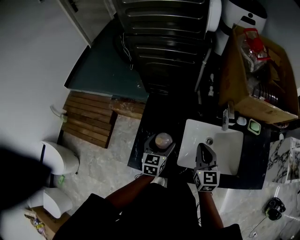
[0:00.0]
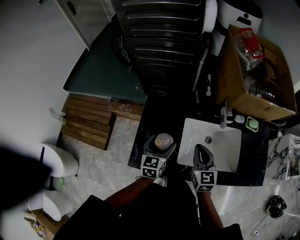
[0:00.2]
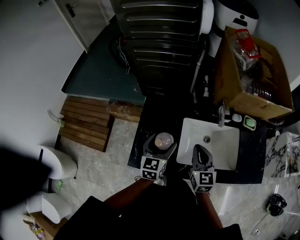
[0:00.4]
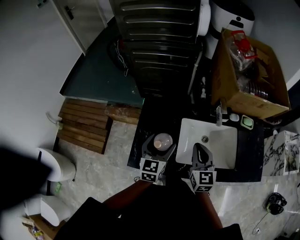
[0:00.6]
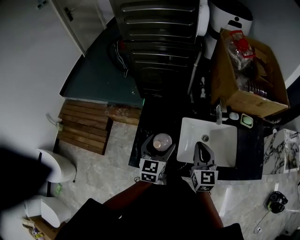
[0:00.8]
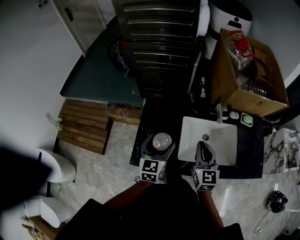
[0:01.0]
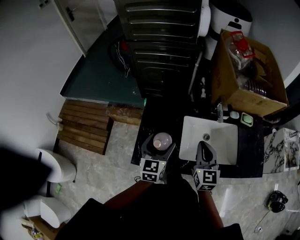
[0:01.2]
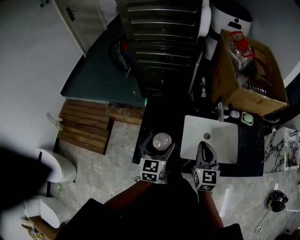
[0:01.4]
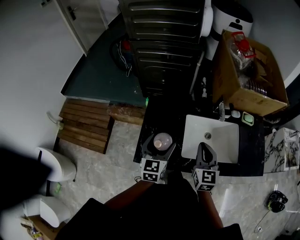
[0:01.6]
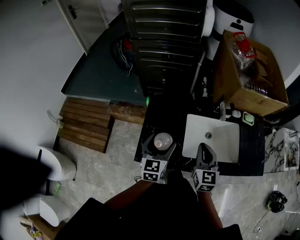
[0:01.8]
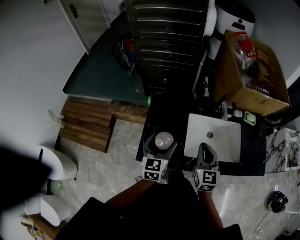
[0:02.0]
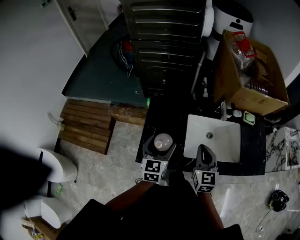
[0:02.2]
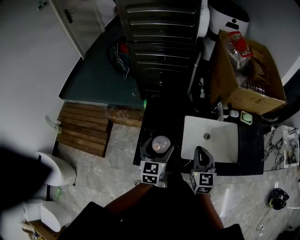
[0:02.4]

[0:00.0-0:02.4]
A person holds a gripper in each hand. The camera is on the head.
0:00.0 to 0:01.2: The left gripper goes some 10 cm upward and backward. The right gripper is displaced backward and upward by about 10 cm.
0:01.2 to 0:02.4: The grippers make only small movements.

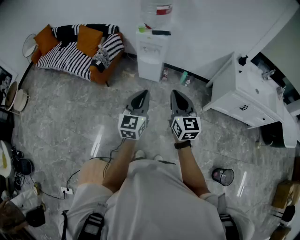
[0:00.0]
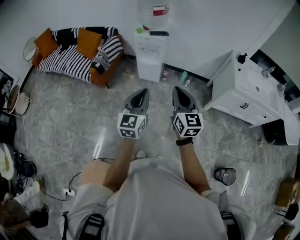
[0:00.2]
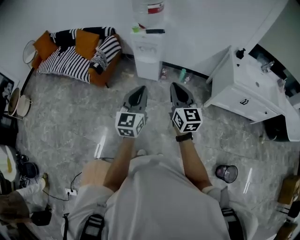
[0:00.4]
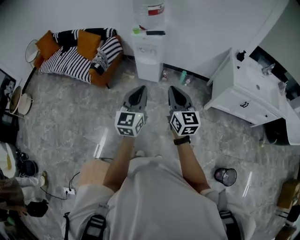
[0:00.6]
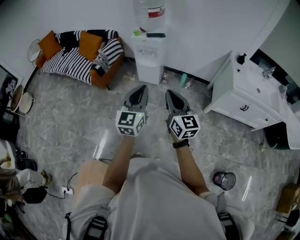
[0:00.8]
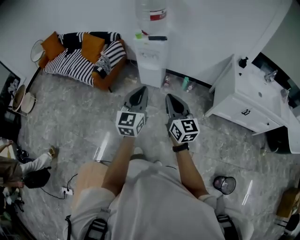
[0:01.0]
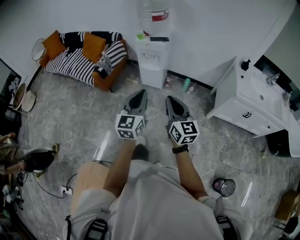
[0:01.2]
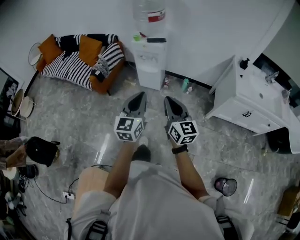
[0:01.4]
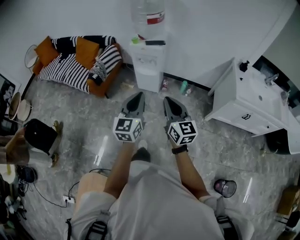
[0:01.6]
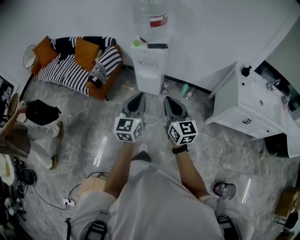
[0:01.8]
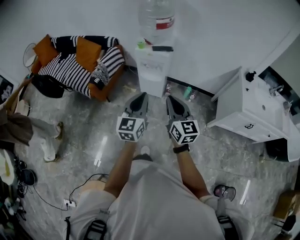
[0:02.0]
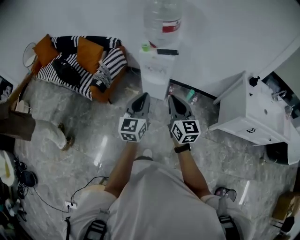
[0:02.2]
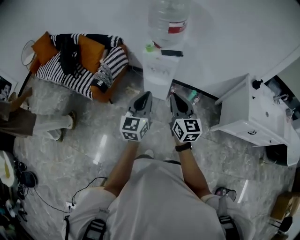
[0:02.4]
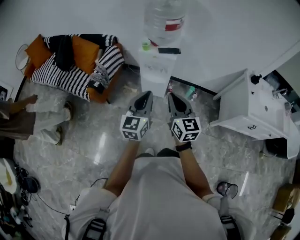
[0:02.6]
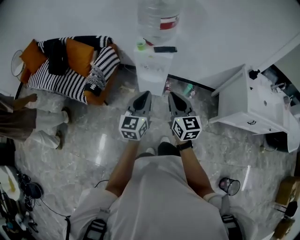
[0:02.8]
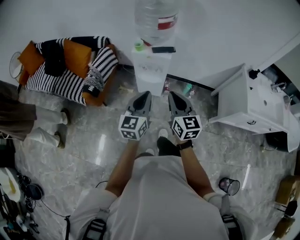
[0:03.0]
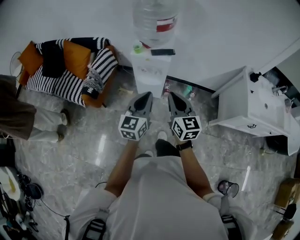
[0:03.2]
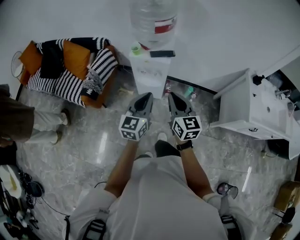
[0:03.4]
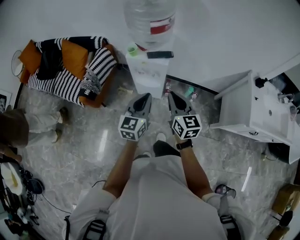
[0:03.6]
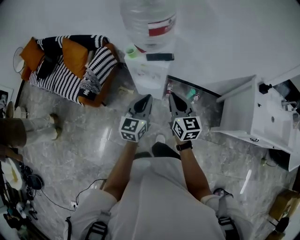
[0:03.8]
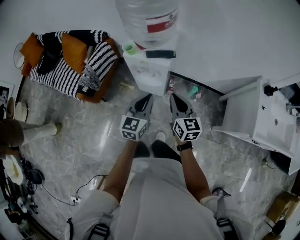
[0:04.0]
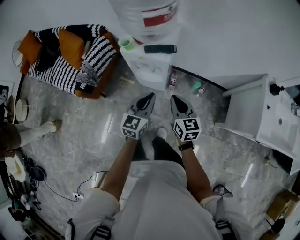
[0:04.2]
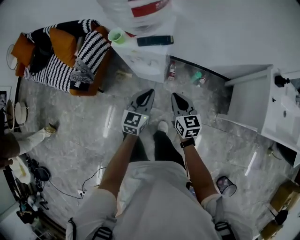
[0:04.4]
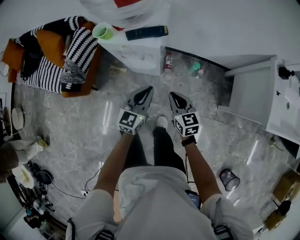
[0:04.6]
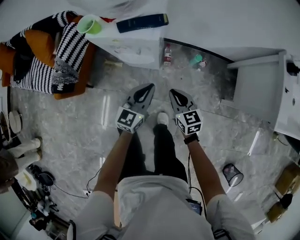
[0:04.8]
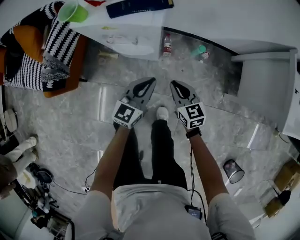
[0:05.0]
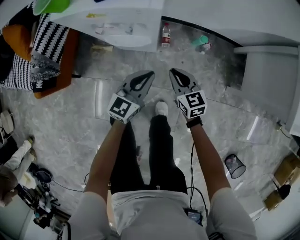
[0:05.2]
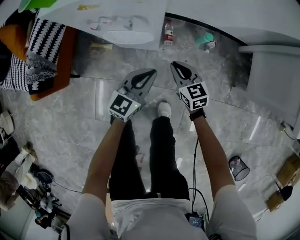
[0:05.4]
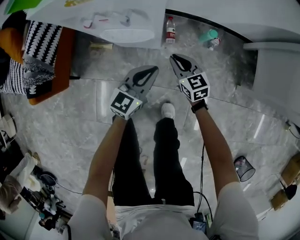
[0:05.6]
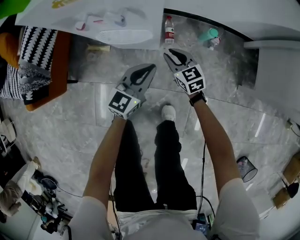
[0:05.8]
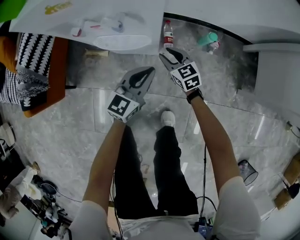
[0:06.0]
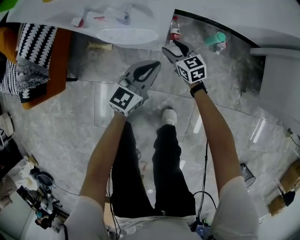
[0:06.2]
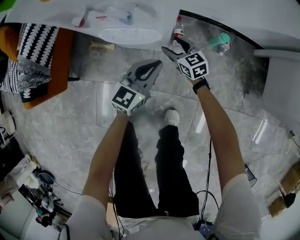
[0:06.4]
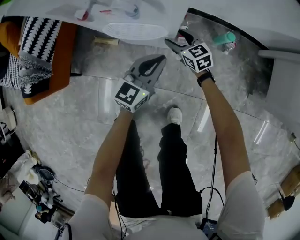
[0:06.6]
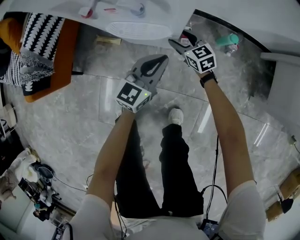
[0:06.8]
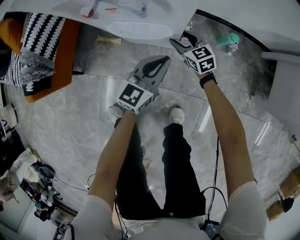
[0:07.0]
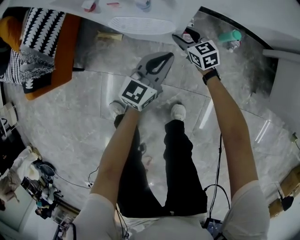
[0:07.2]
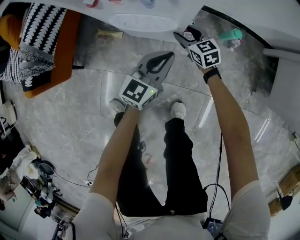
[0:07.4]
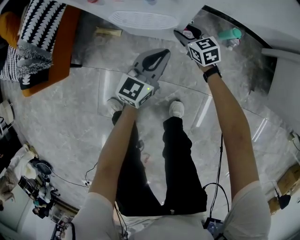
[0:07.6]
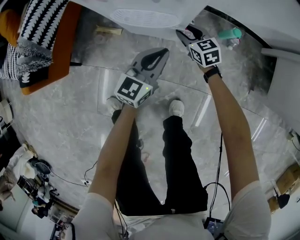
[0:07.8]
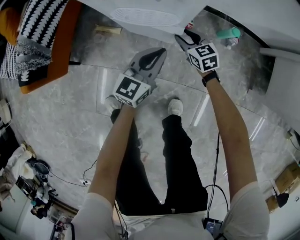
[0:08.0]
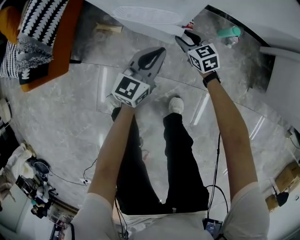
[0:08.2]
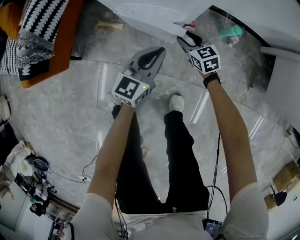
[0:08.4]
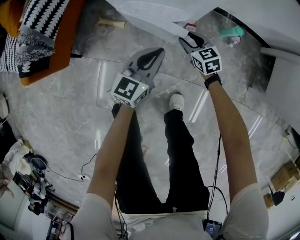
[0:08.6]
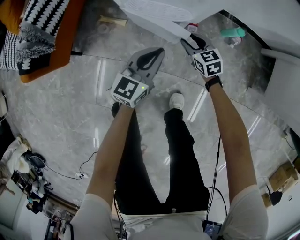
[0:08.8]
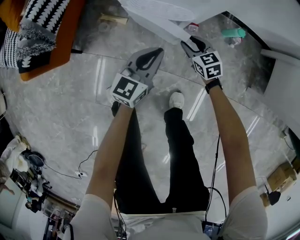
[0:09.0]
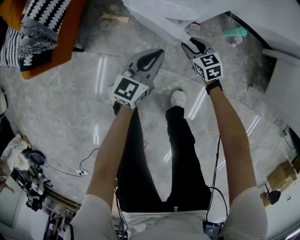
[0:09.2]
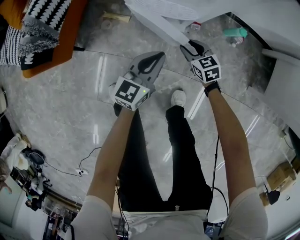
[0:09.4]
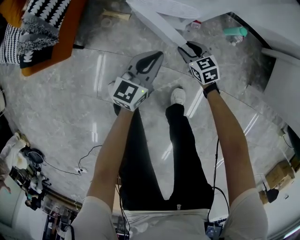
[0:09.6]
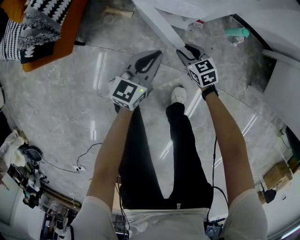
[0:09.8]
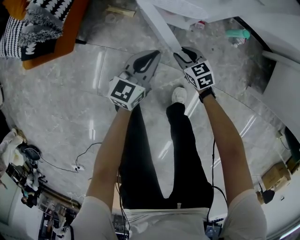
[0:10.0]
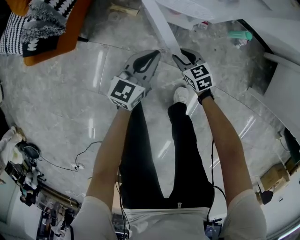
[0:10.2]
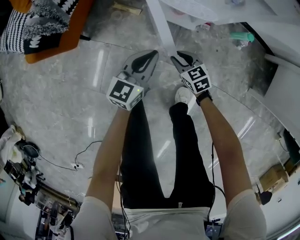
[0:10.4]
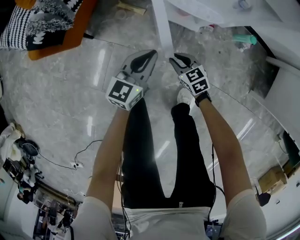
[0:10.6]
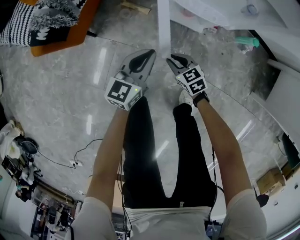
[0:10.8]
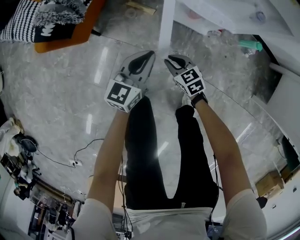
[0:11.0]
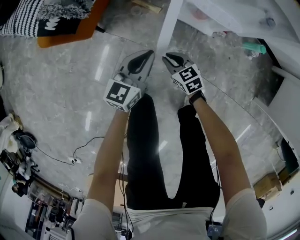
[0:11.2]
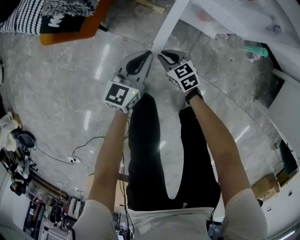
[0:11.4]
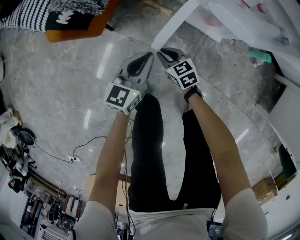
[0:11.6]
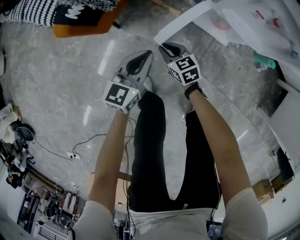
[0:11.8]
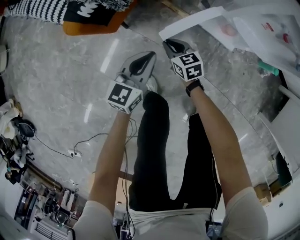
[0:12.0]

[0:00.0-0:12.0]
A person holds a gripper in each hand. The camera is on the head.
0:00.0 to 0:01.6: Both grippers move forward, some 10 cm.
0:01.6 to 0:03.0: Both grippers move forward, about 25 cm.
0:03.0 to 0:04.4: Both grippers travel together downward, forward and to the right, approximately 30 cm.
0:04.4 to 0:06.0: The grippers both shift downward by about 40 cm. The right gripper opens up.
0:06.0 to 0:07.6: The right gripper moves forward, some 5 cm.
0:07.6 to 0:09.0: The right gripper goes some 10 cm backward. Meanwhile the left gripper goes approximately 5 cm to the left.
0:09.0 to 0:10.4: The right gripper heads to the left and backward, covering about 15 cm. The left gripper travels to the left by about 10 cm.
0:10.4 to 0:12.0: The right gripper moves to the left and forward, approximately 30 cm. Meanwhile the left gripper goes about 25 cm to the left.

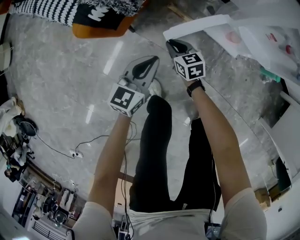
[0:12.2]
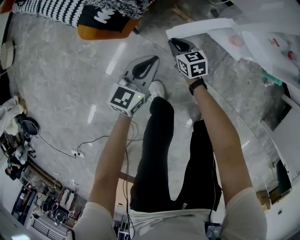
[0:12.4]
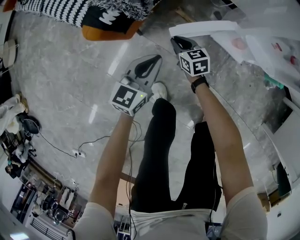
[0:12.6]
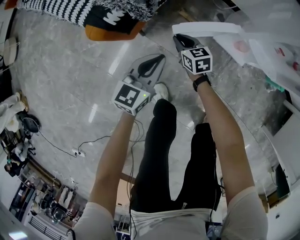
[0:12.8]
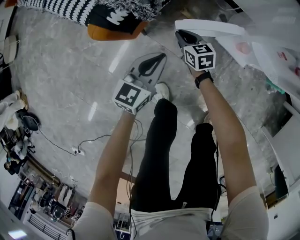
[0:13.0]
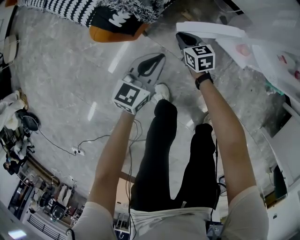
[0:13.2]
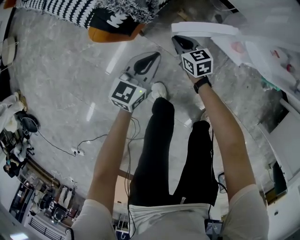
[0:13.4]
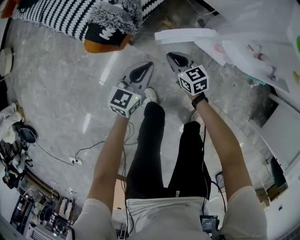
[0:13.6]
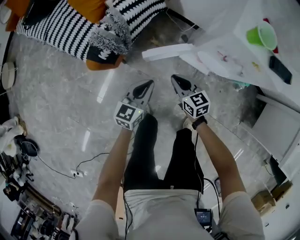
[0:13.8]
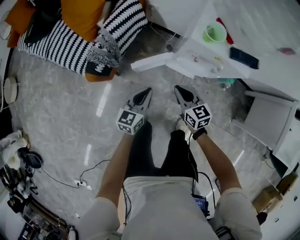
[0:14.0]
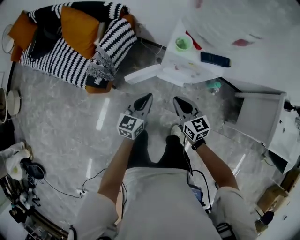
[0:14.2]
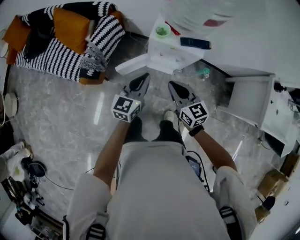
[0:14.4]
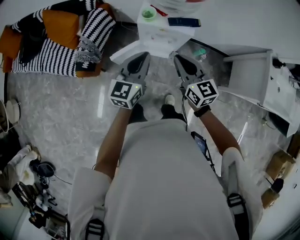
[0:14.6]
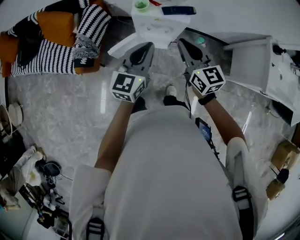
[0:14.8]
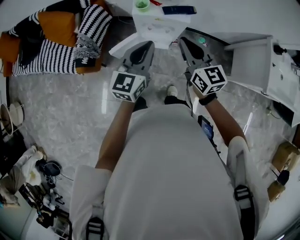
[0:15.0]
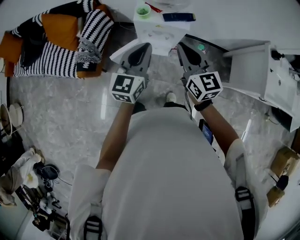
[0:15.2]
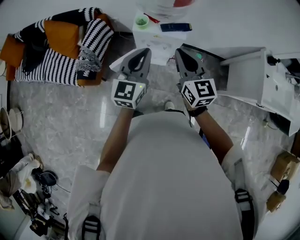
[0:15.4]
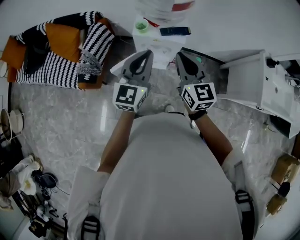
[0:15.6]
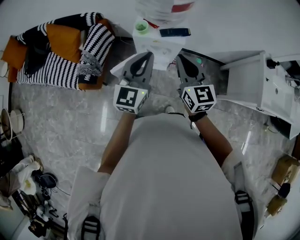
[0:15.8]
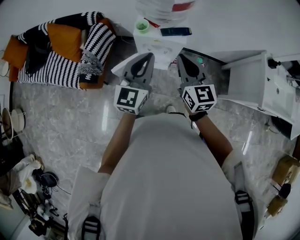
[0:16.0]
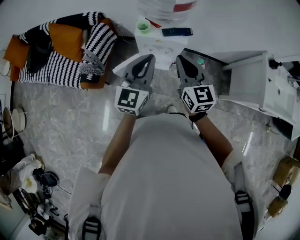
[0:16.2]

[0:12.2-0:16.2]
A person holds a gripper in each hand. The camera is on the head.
0:12.2 to 0:13.6: The right gripper heads upward, covering some 10 cm. Meanwhile the left gripper goes approximately 5 cm upward.
0:13.6 to 0:14.8: The two grippers go approximately 50 cm upward. The right gripper changes its angle by some 40 degrees; the left gripper turns by some 20 degrees.
0:14.8 to 0:16.2: The left gripper travels upward by about 5 cm.

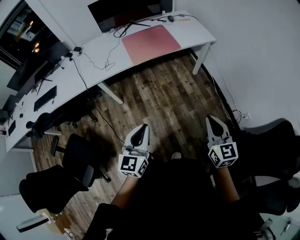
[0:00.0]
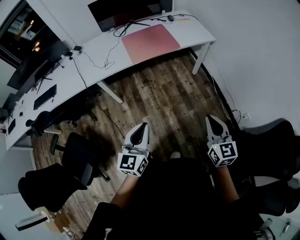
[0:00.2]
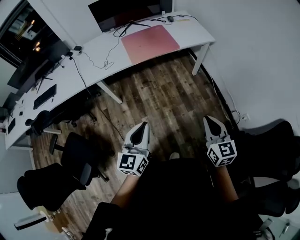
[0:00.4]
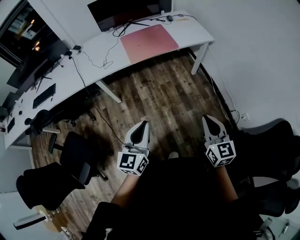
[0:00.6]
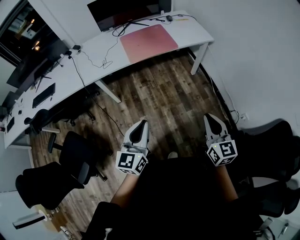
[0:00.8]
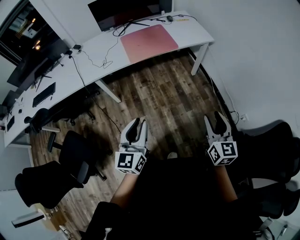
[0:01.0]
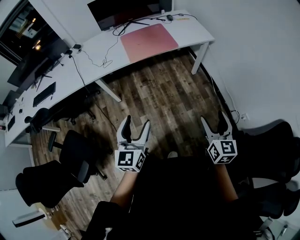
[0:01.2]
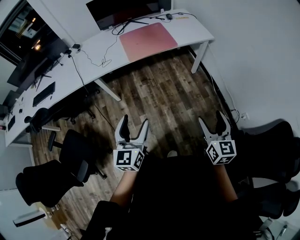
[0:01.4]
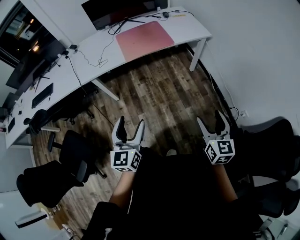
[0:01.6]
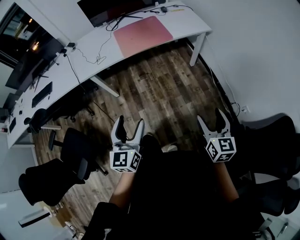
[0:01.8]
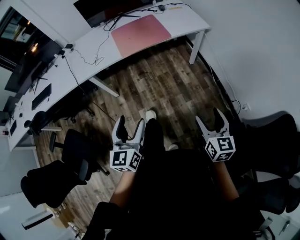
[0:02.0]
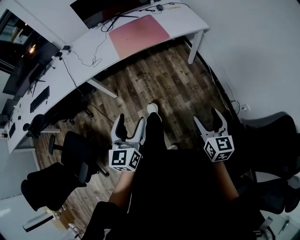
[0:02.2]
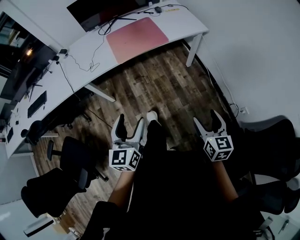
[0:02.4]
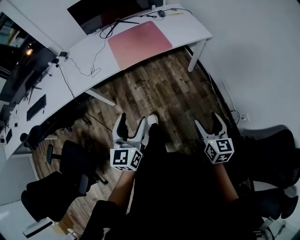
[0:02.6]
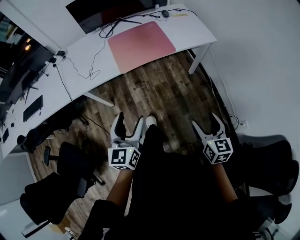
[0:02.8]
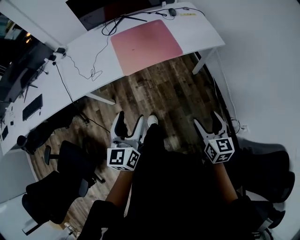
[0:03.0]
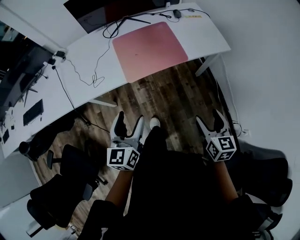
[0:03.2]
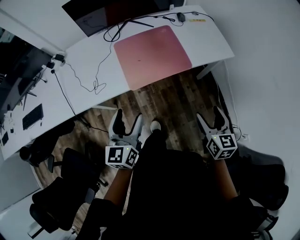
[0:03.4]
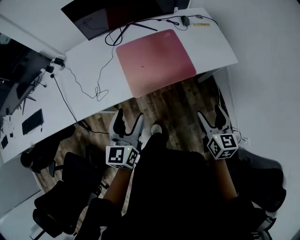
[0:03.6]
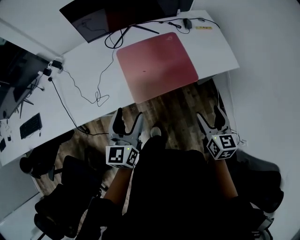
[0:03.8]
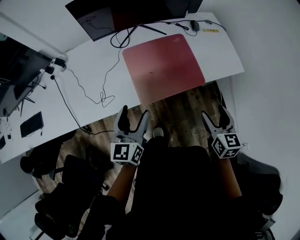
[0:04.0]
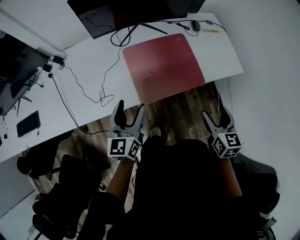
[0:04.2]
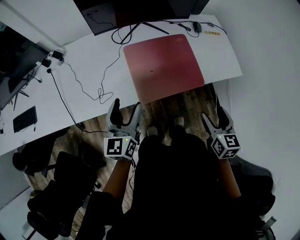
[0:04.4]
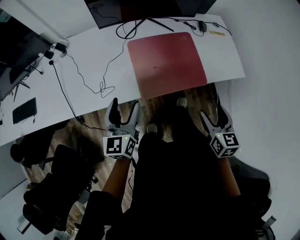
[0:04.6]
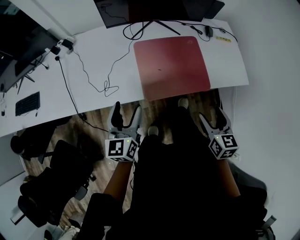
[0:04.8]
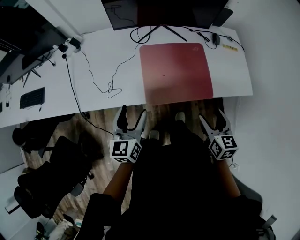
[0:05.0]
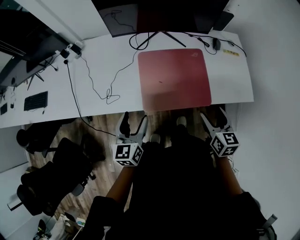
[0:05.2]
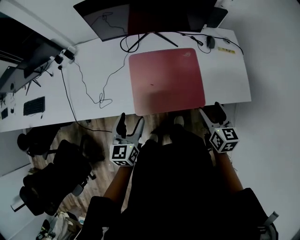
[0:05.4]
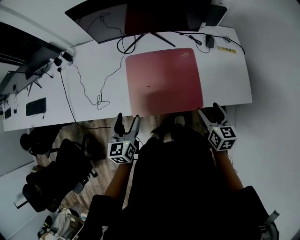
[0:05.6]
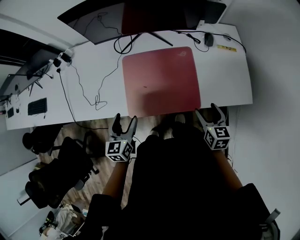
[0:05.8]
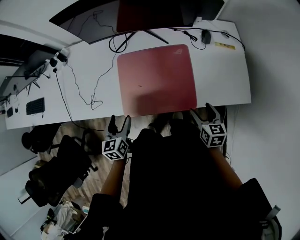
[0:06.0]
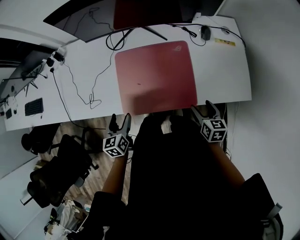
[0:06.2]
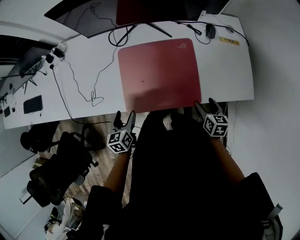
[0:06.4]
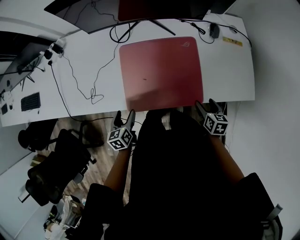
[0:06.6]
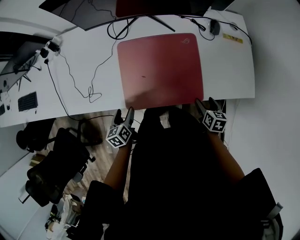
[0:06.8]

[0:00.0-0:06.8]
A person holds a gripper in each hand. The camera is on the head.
0:00.0 to 0:01.4: The left gripper opens its fingers, while the right gripper goes some 5 cm to the right, and opens.
0:01.4 to 0:02.8: The grippers both shift forward by about 20 cm.
0:02.8 to 0:04.0: Both grippers travel together forward, approximately 35 cm.
0:04.0 to 0:05.4: The left gripper travels downward by roughly 5 cm. The right gripper moves forward, roughly 15 cm.
0:05.4 to 0:06.8: Both grippers move downward, some 20 cm. The left gripper rotates approximately 30 degrees. The right gripper changes its angle by approximately 20 degrees.
